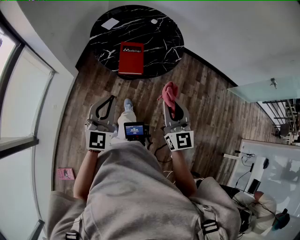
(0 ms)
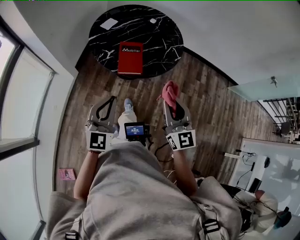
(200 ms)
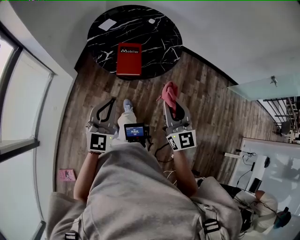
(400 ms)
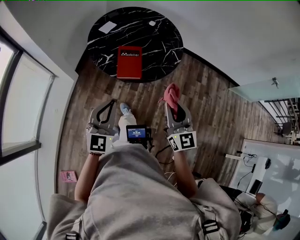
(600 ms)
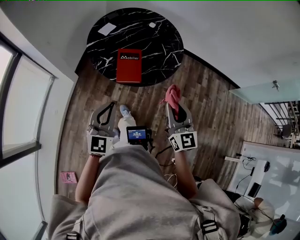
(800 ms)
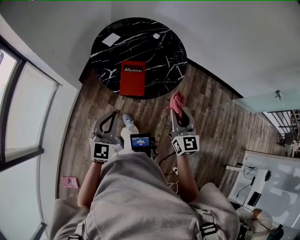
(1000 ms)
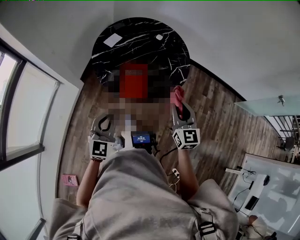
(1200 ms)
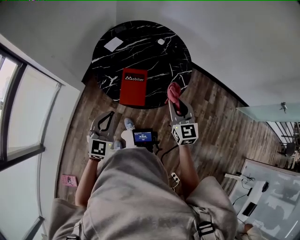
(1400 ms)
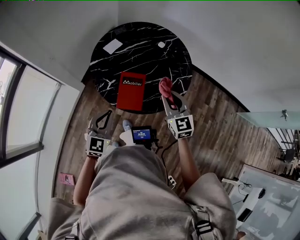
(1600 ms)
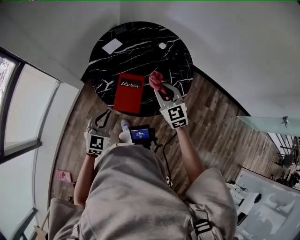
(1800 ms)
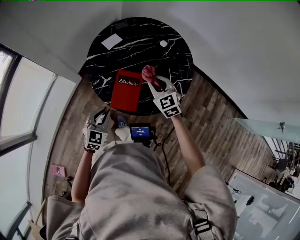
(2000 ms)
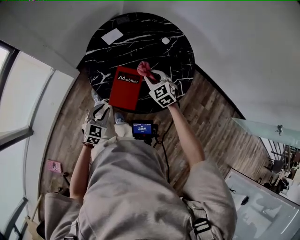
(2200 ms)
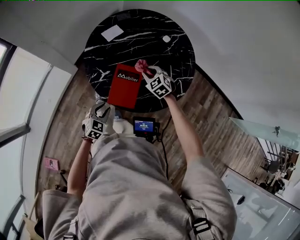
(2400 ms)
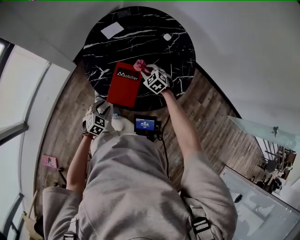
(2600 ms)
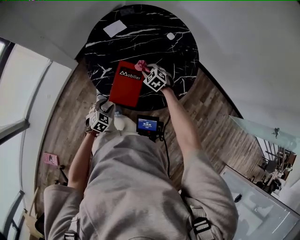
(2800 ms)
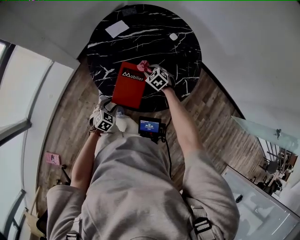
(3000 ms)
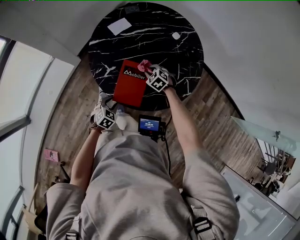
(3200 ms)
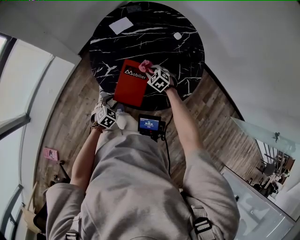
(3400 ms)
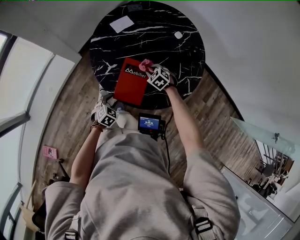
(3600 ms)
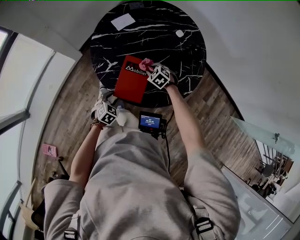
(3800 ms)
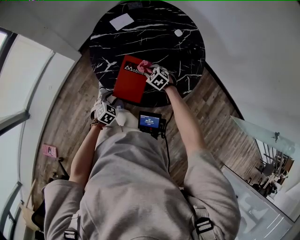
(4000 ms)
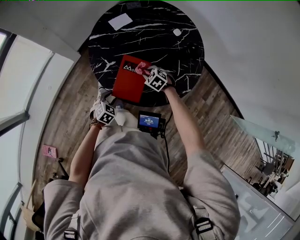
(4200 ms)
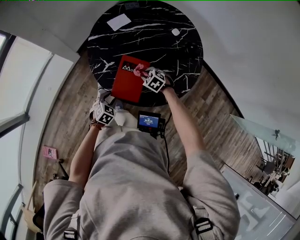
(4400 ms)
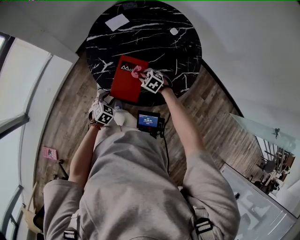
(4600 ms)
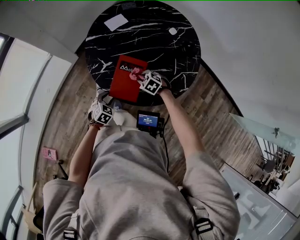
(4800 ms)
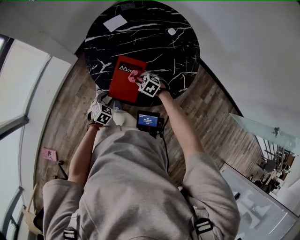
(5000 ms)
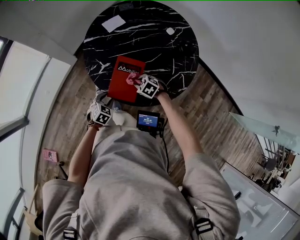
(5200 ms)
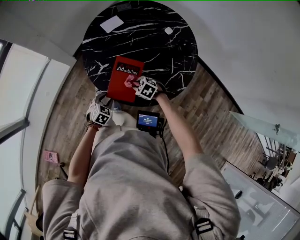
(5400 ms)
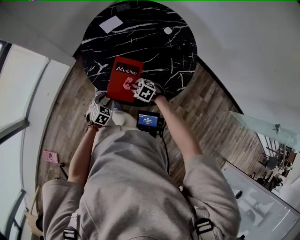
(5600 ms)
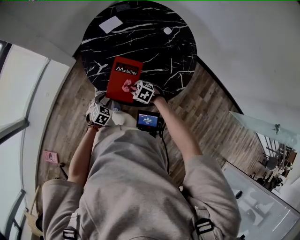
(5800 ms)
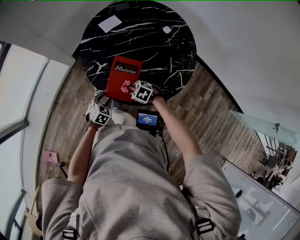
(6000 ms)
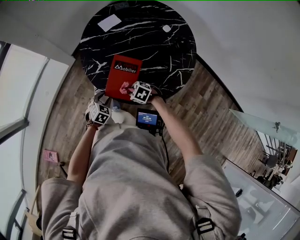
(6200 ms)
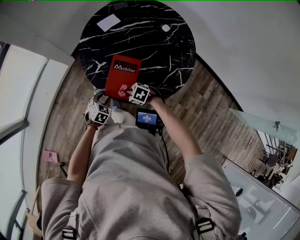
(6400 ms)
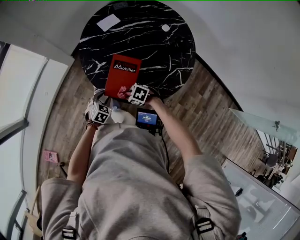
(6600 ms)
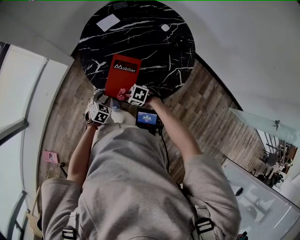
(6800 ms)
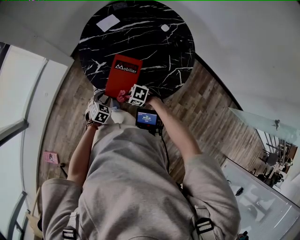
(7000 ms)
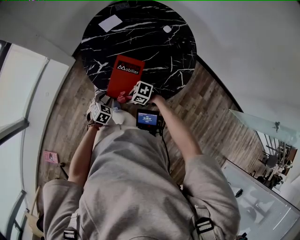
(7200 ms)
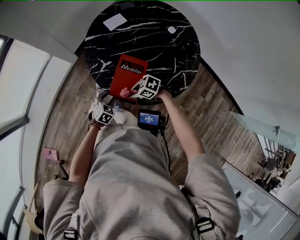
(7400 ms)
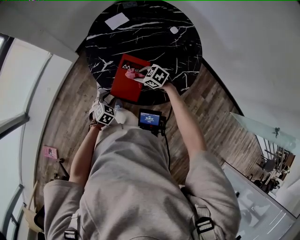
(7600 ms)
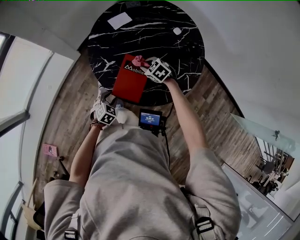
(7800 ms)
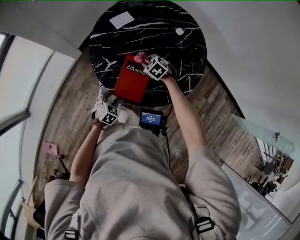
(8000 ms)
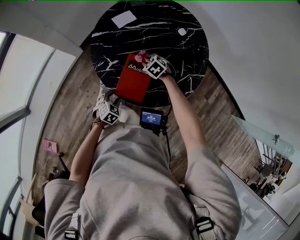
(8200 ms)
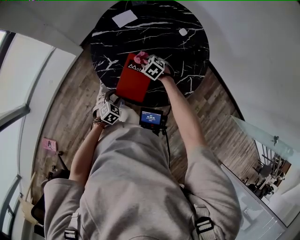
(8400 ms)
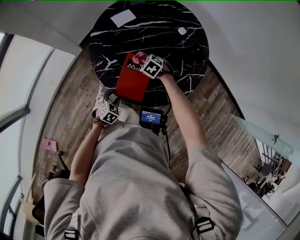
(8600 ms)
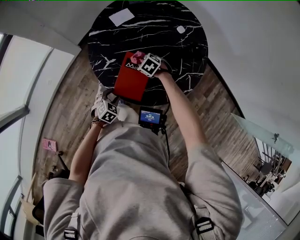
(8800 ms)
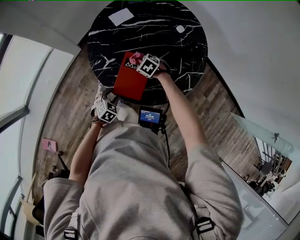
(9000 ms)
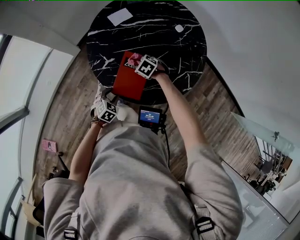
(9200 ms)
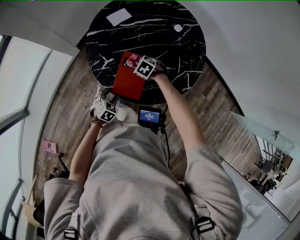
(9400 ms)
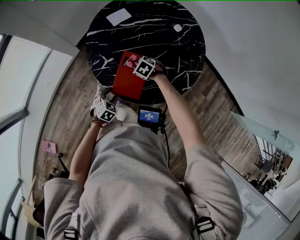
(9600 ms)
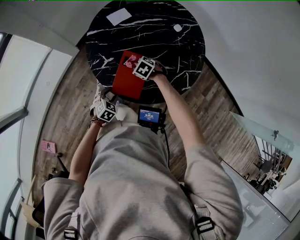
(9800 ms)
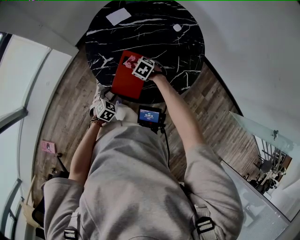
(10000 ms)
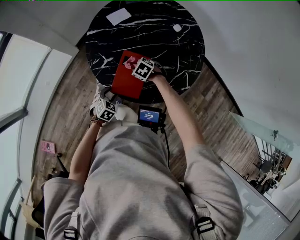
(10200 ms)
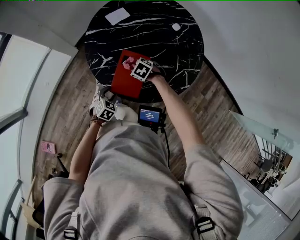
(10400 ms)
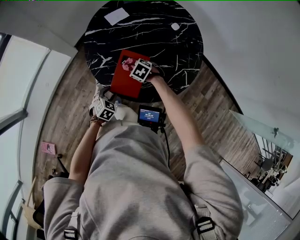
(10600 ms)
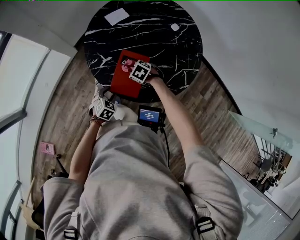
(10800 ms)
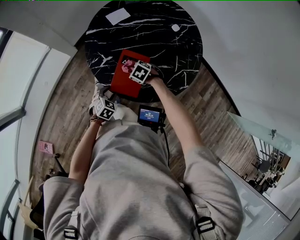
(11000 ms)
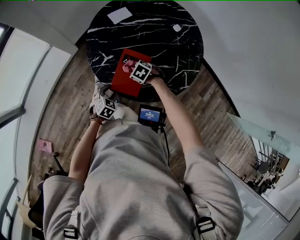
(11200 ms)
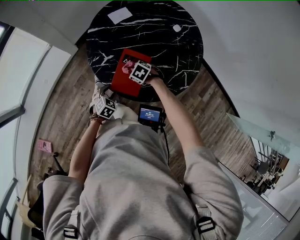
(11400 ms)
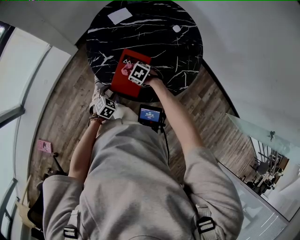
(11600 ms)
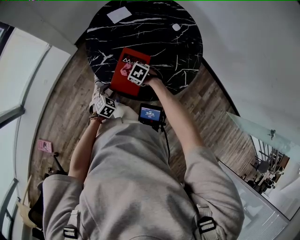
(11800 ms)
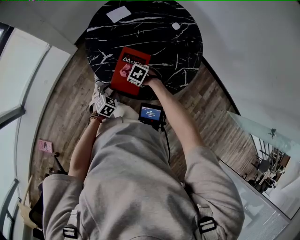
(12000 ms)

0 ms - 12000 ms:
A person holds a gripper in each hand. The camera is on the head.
0 ms - 1600 ms: The right gripper moves forward, about 30 cm, while the left gripper is displaced forward by some 20 cm.
1600 ms - 3000 ms: The left gripper goes some 30 cm downward, angles its fingers downward, by roughly 40 degrees, and opens; the right gripper moves downward and forward, approximately 35 cm, and angles its fingers downward, by roughly 40 degrees.
3000 ms - 4400 ms: The right gripper shifts some 5 cm backward.
4400 ms - 6000 ms: The right gripper is displaced backward and to the left by some 10 cm.
6000 ms - 7600 ms: The right gripper moves roughly 10 cm.
7600 ms - 9000 ms: The right gripper moves about 10 cm, and rotates approximately 20 degrees.
9000 ms - 10400 ms: The grippers make only small movements.
10400 ms - 12000 ms: The right gripper ends up some 5 cm from where it was.

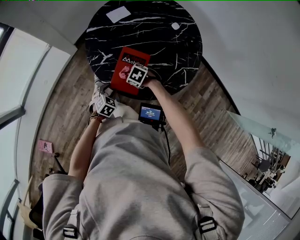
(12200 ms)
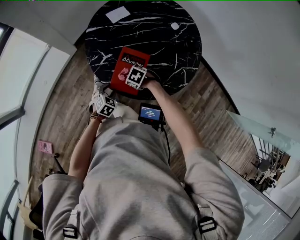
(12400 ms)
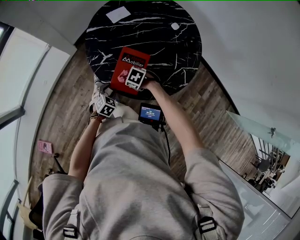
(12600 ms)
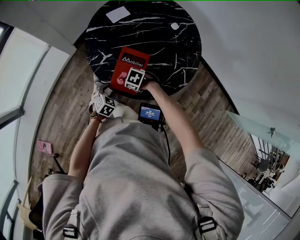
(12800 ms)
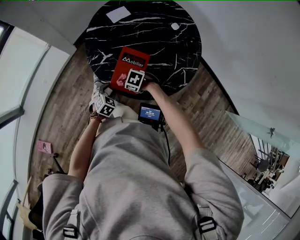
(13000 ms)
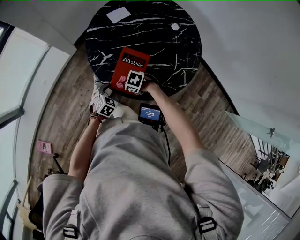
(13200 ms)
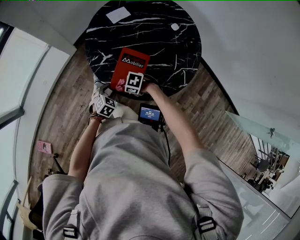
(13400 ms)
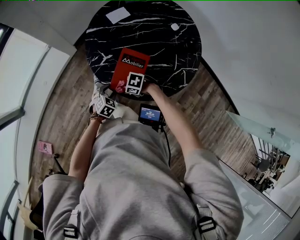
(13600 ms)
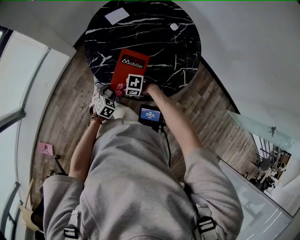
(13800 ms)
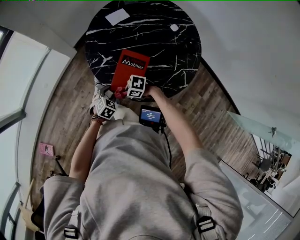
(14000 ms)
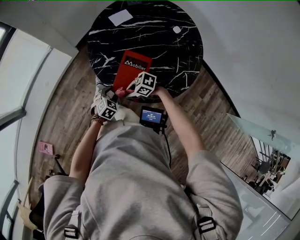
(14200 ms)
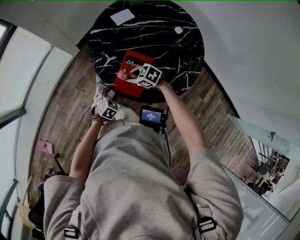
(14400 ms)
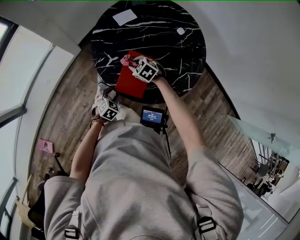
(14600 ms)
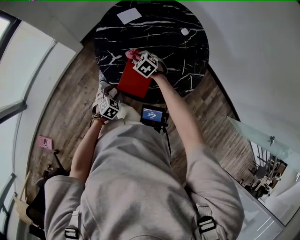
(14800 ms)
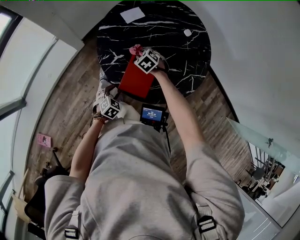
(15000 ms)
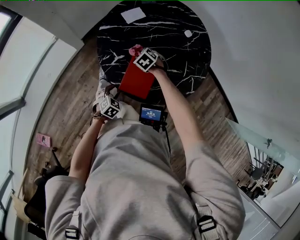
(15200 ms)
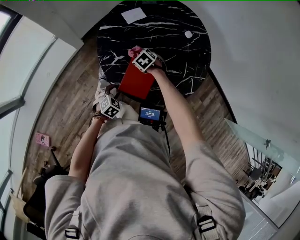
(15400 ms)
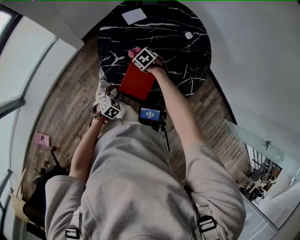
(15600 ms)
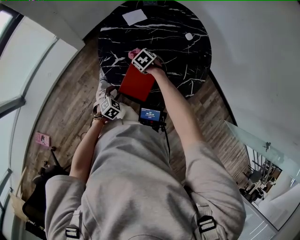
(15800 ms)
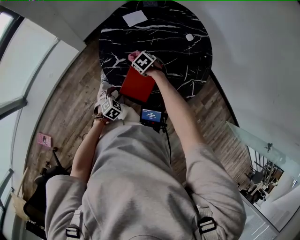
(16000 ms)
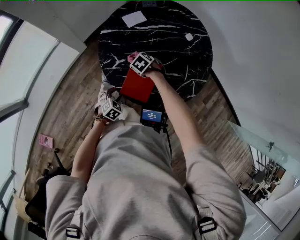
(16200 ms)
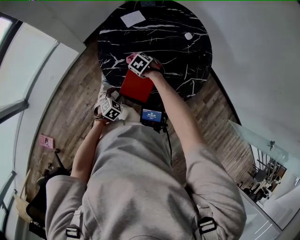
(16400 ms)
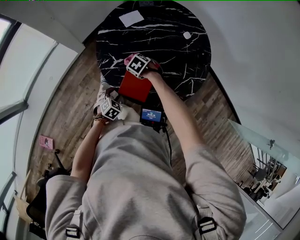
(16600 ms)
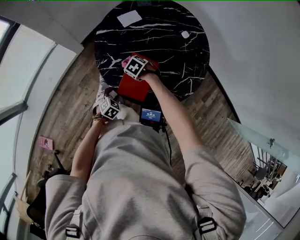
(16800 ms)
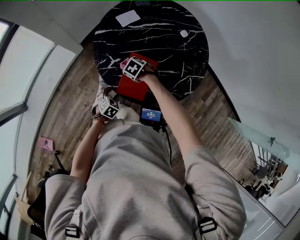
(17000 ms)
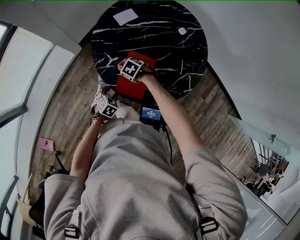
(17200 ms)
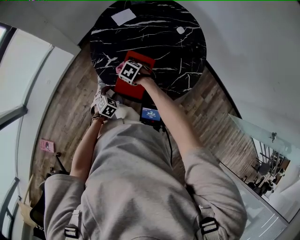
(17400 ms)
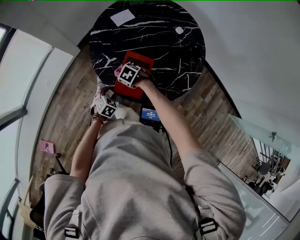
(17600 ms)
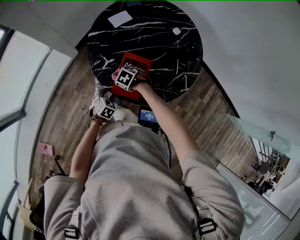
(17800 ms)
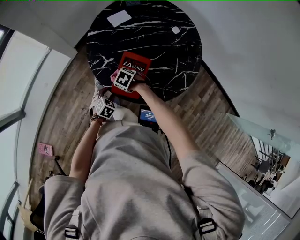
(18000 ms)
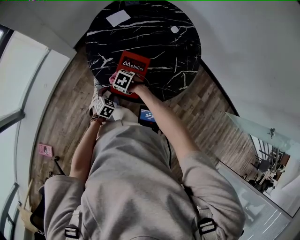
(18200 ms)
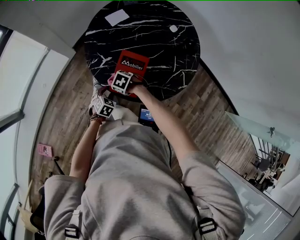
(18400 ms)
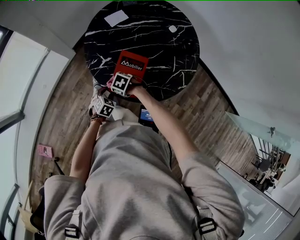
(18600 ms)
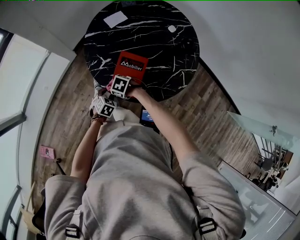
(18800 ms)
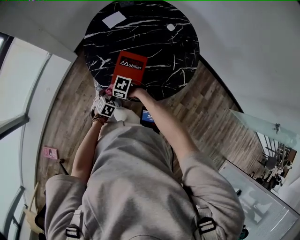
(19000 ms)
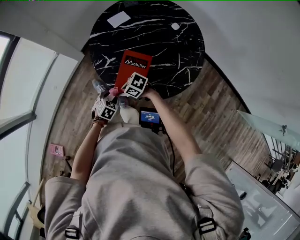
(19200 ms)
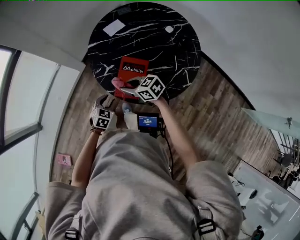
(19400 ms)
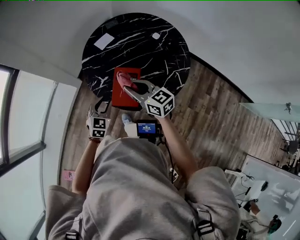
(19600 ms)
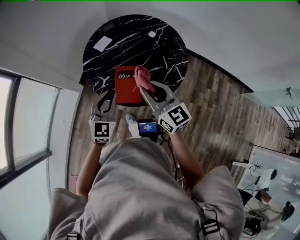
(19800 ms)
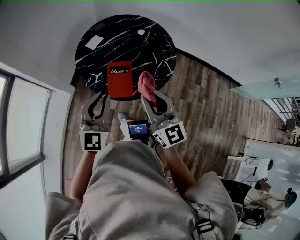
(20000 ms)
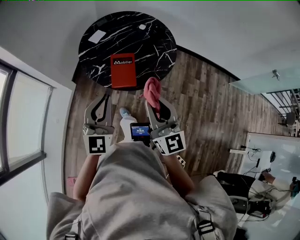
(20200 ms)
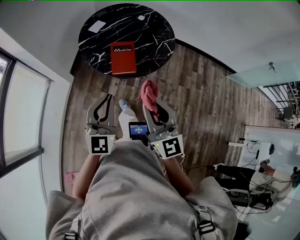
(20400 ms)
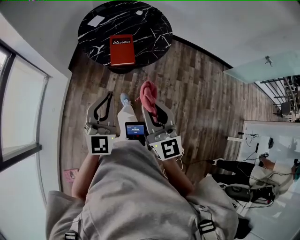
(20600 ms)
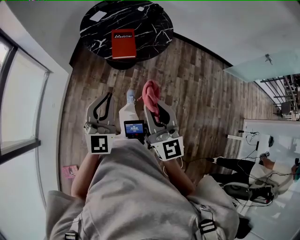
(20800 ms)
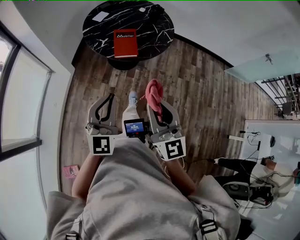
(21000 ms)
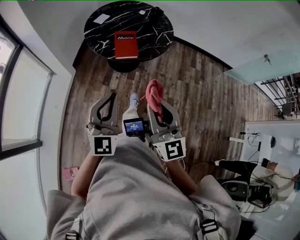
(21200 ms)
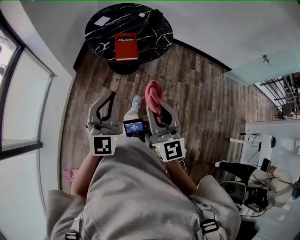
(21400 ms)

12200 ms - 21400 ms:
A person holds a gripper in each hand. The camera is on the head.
12200 ms - 13800 ms: The right gripper moves some 10 cm, and turns by roughly 20 degrees.
13800 ms - 15200 ms: The right gripper ends up some 25 cm from where it was, and swivels approximately 40 degrees.
15200 ms - 16800 ms: The right gripper shifts by roughly 5 cm.
16800 ms - 18400 ms: The right gripper changes place by approximately 10 cm.
18400 ms - 19800 ms: The grippers both shift upward by roughly 35 cm. The right gripper points its fingers some 70 degrees further upward; the left gripper angles its fingers upward, by about 50 degrees.
19800 ms - 21400 ms: The two grippers go approximately 40 cm backward. The left gripper turns by some 20 degrees, while the right gripper turns by about 30 degrees.

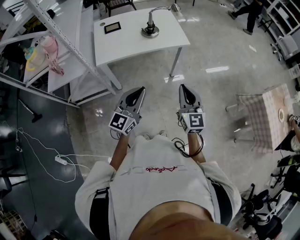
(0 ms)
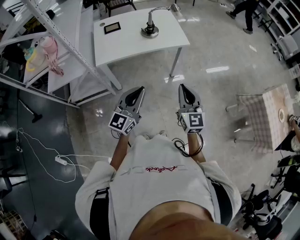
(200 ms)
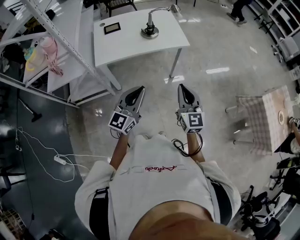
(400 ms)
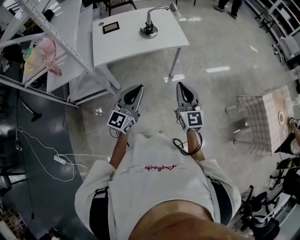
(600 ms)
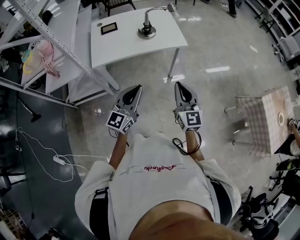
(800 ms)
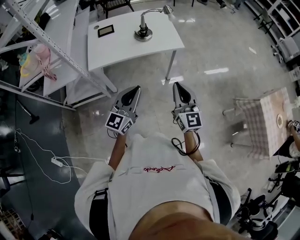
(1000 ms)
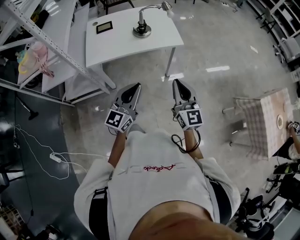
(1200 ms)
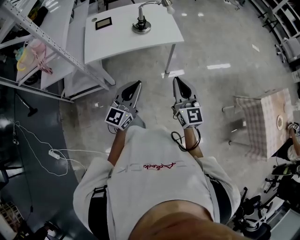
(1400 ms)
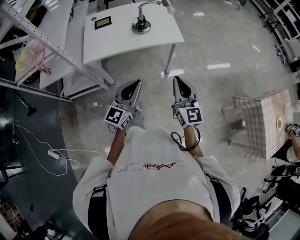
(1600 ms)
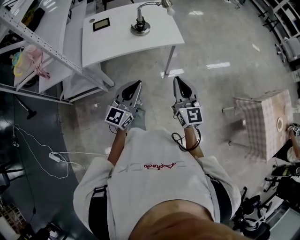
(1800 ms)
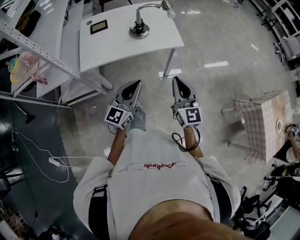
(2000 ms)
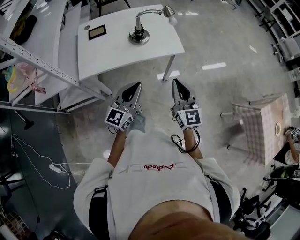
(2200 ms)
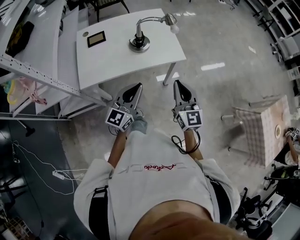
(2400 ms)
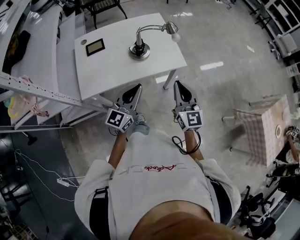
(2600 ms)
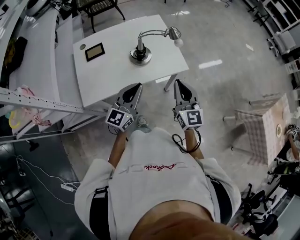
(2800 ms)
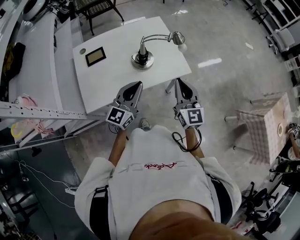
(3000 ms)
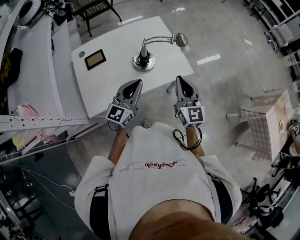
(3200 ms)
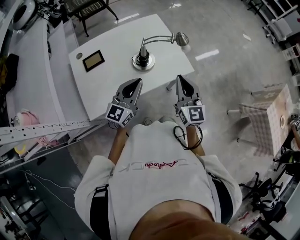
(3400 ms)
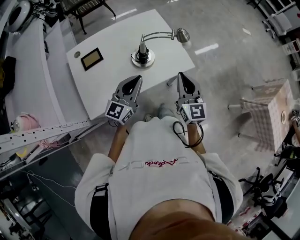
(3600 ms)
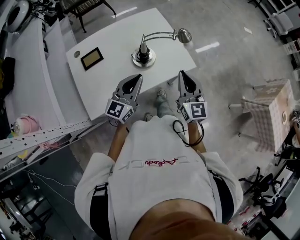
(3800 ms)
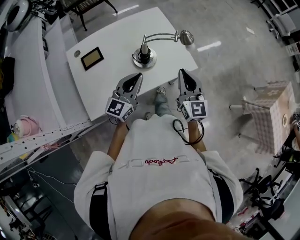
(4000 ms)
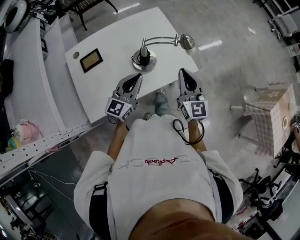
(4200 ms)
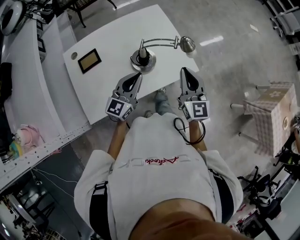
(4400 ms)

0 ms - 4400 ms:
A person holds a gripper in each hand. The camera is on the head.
0 ms - 1400 ms: The right gripper goes about 10 cm forward and to the right. The left gripper travels to the right and forward by roughly 10 cm.
1400 ms - 3000 ms: The right gripper is displaced forward and to the left by roughly 30 cm. Meanwhile the left gripper travels forward by some 30 cm.
3000 ms - 4400 ms: The left gripper is displaced forward and downward by approximately 15 cm; the right gripper goes some 10 cm forward.
